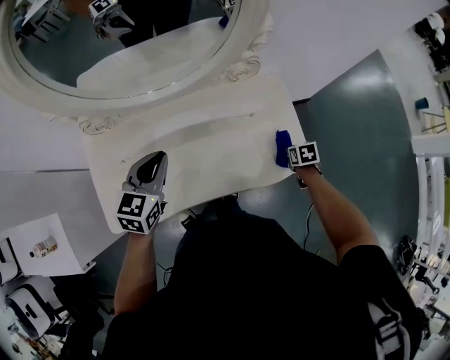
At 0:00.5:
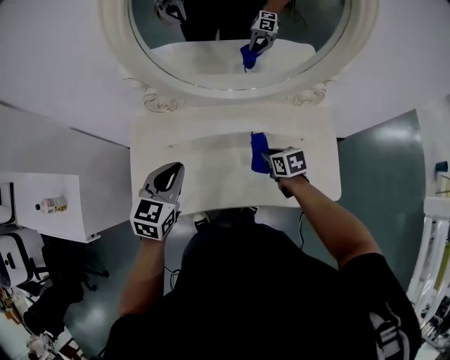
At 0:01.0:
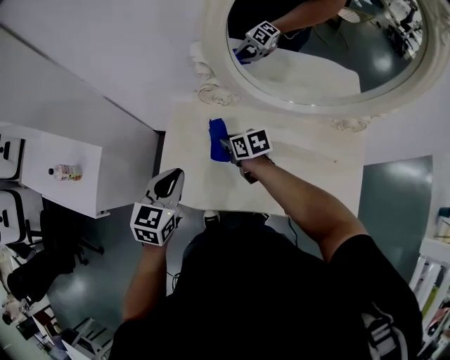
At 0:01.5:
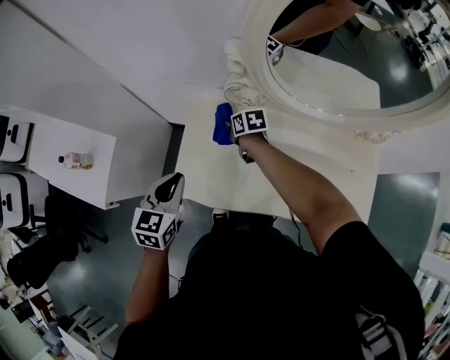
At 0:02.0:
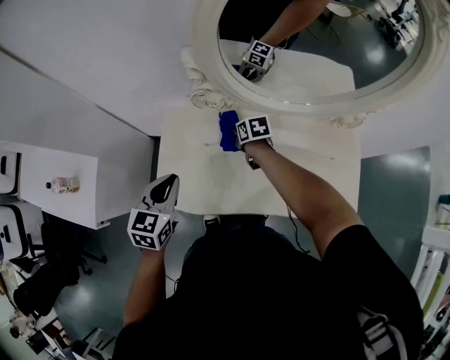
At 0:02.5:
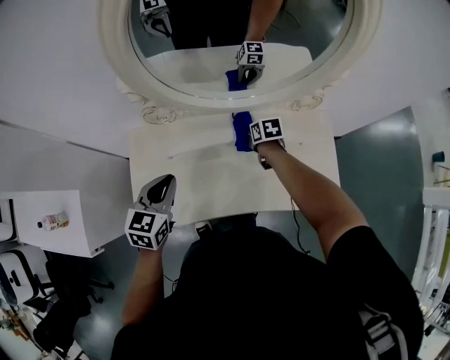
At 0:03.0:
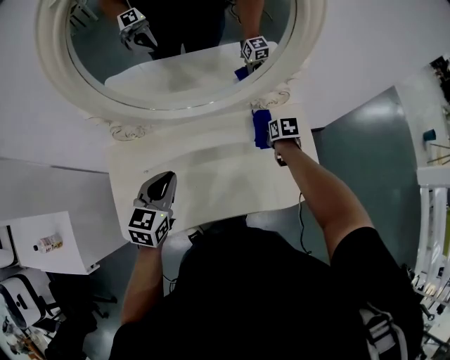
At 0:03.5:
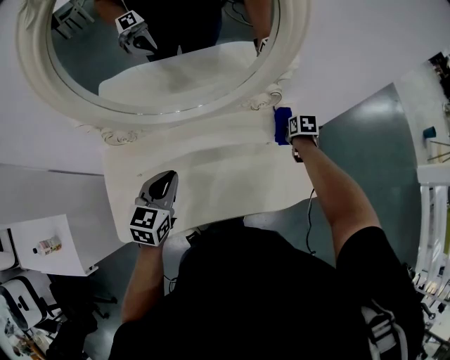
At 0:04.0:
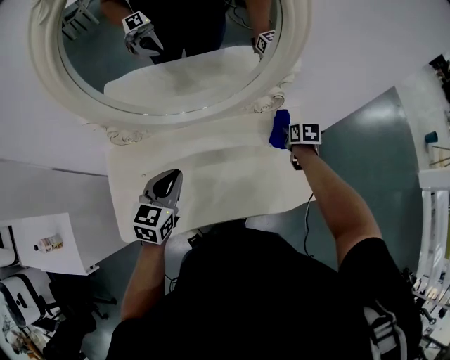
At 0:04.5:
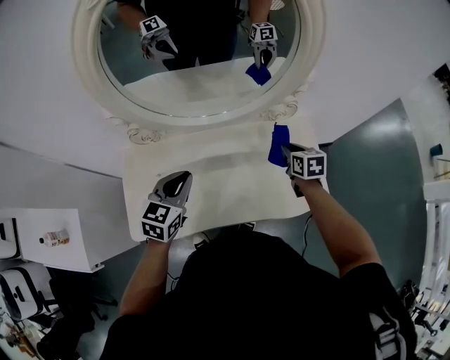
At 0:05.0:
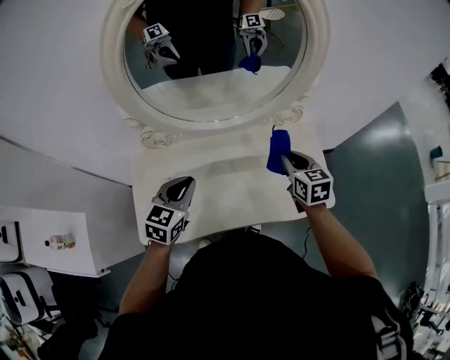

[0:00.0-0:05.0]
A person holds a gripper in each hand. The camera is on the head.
0:02.5 to 0:05.0: The right gripper shifts approximately 25 cm upward, to the right and backward, and swivels about 30 degrees, while the left gripper goes some 10 cm to the right.

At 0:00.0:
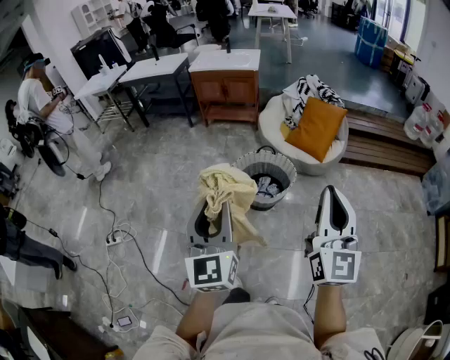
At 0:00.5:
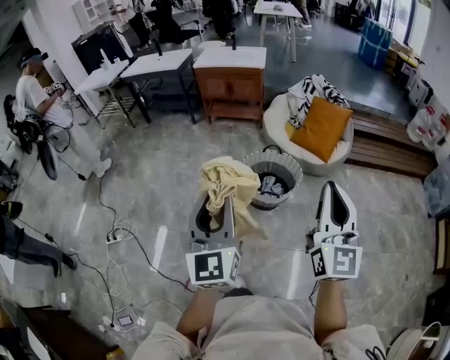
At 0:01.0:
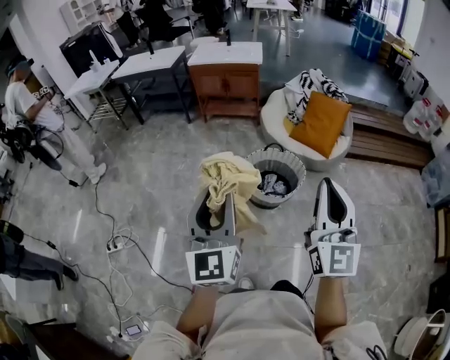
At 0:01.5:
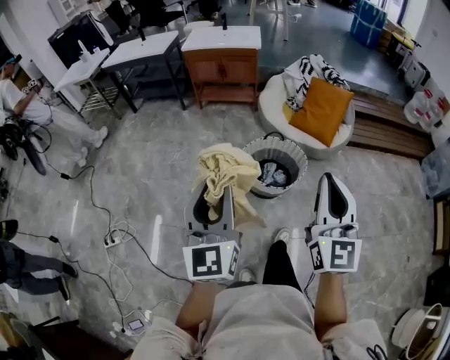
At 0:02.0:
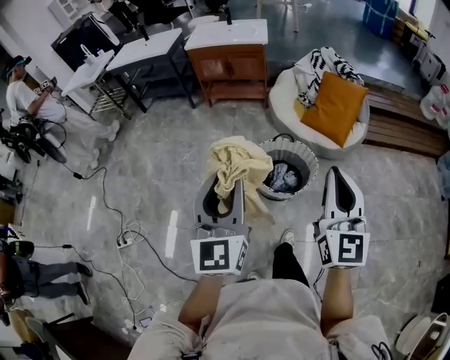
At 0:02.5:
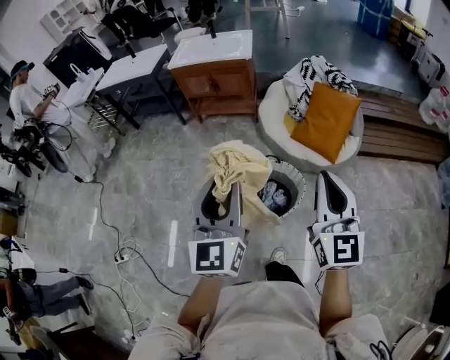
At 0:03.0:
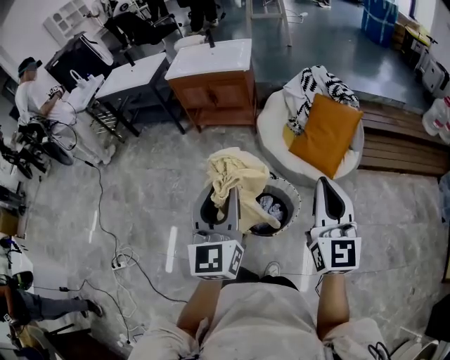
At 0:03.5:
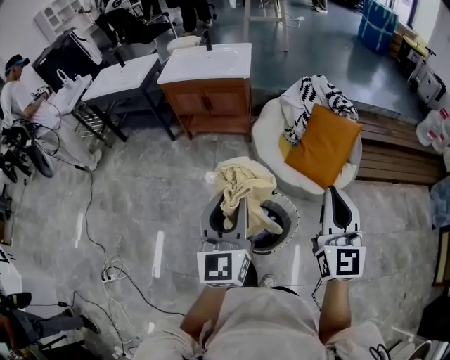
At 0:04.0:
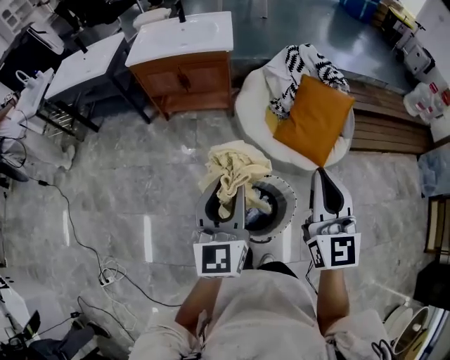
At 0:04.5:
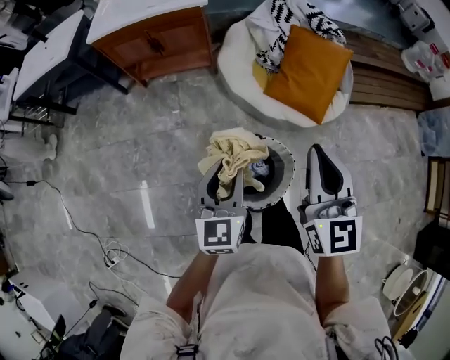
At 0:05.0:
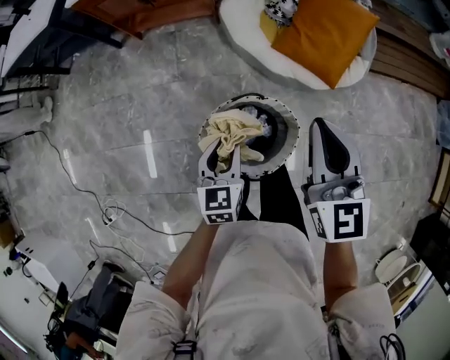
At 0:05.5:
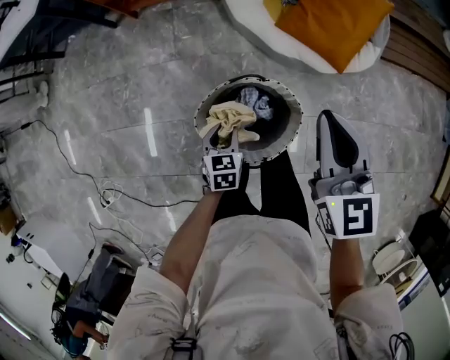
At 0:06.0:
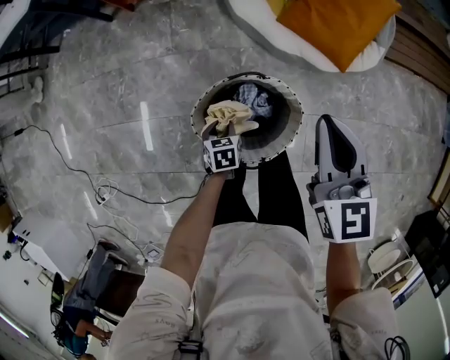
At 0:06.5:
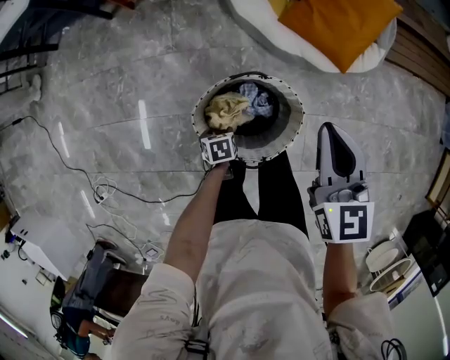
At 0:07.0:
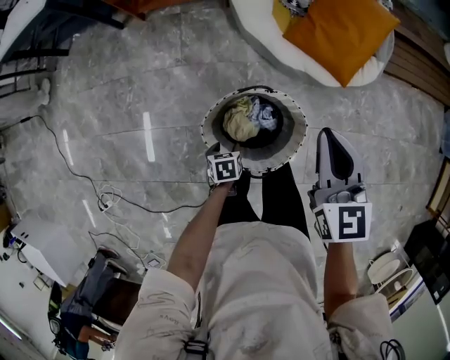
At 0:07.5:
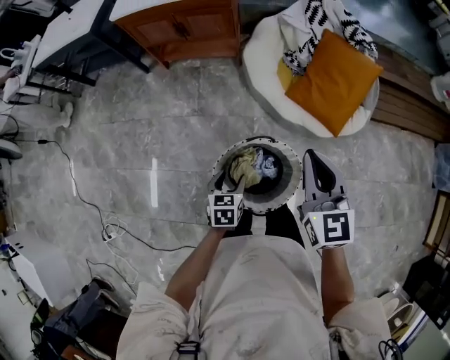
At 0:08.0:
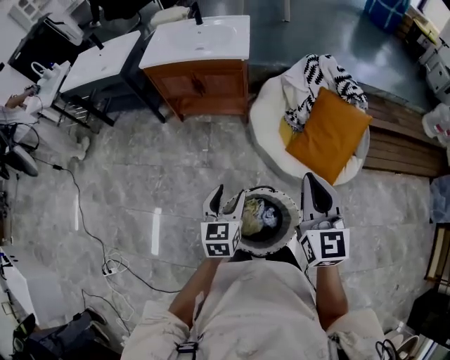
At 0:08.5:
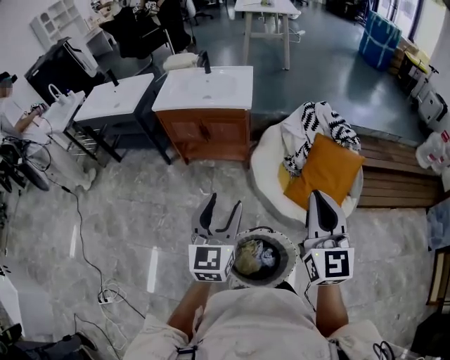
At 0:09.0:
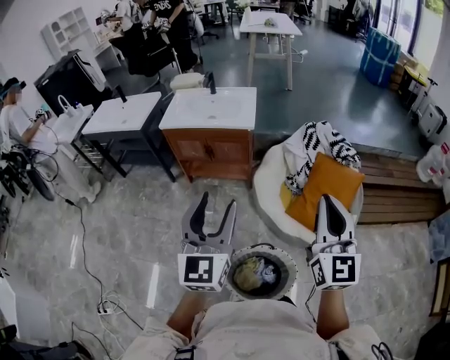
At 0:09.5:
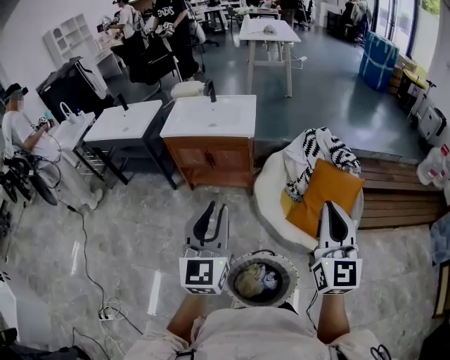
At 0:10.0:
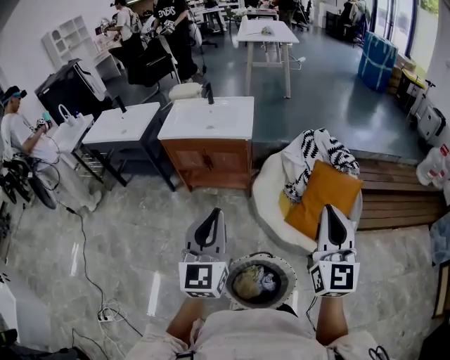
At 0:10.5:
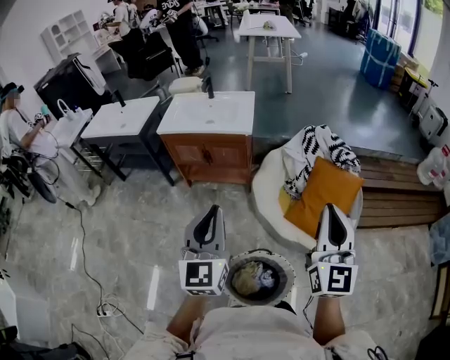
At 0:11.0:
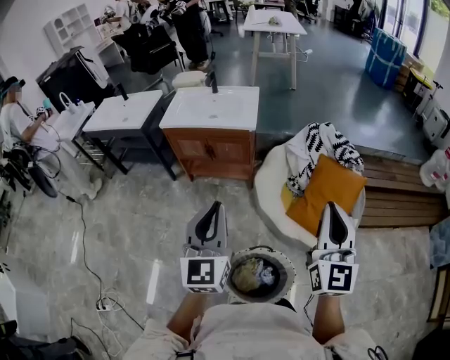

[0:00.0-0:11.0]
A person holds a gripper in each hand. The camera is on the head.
0:00.0 to 0:02.0: Both grippers travel together forward, approximately 20 cm.
0:02.0 to 0:03.5: The grippers both shift forward and to the right by roughly 30 cm.
0:03.5 to 0:05.5: The left gripper travels downward by about 50 cm, and points its fingers about 60 degrees further downward. The right gripper heads downward and forward, covering some 30 cm, and changes its angle by approximately 30 degrees.
0:05.5 to 0:07.5: Both grippers move upward, about 5 cm. The left gripper opens its fingers.
0:07.5 to 0:09.0: The left gripper is displaced upward by roughly 50 cm, and tips its fingers upward by roughly 50 degrees; the right gripper shifts approximately 25 cm upward, and turns by approximately 30 degrees.
0:09.0 to 0:11.0: The left gripper closes its fingers.

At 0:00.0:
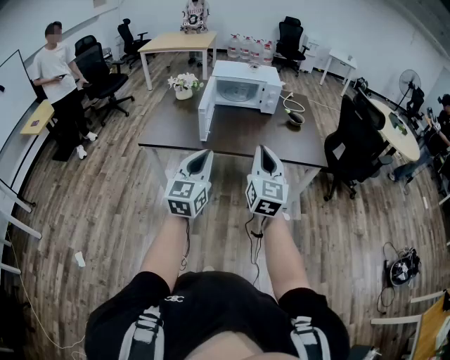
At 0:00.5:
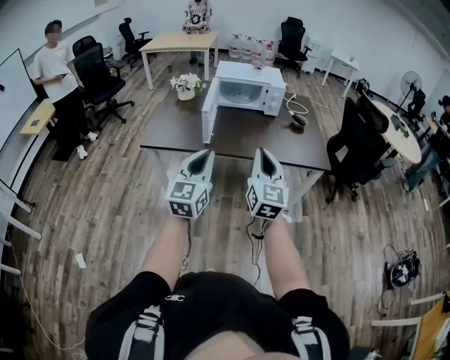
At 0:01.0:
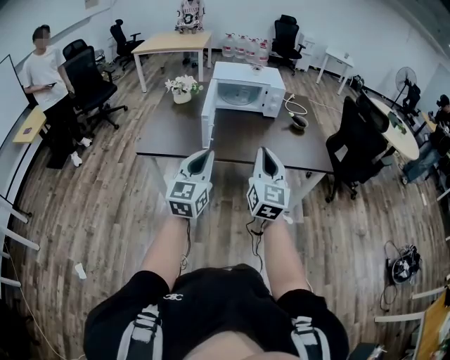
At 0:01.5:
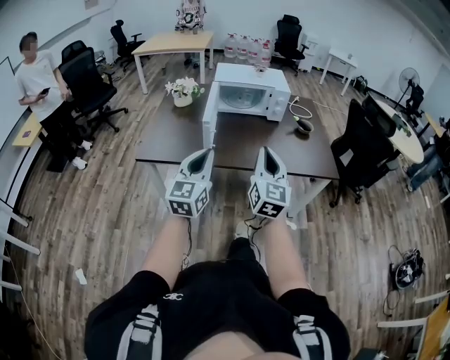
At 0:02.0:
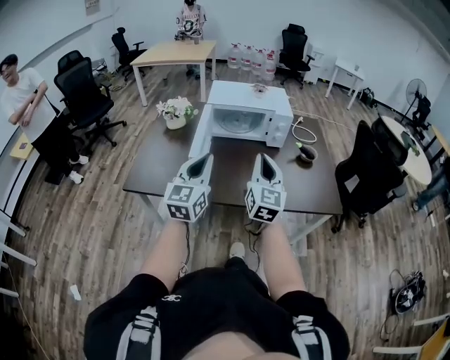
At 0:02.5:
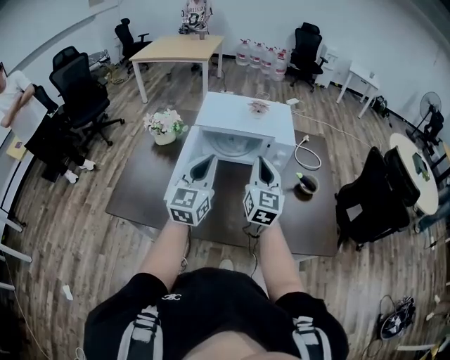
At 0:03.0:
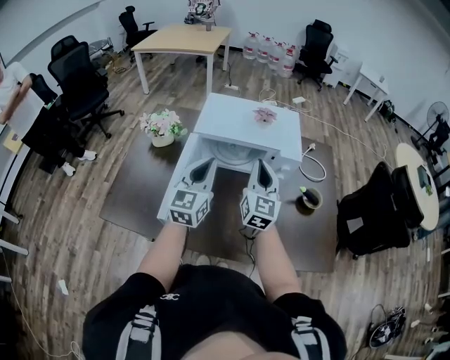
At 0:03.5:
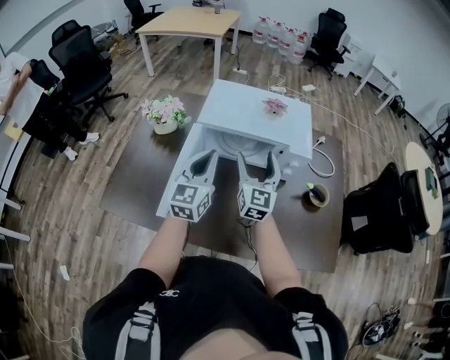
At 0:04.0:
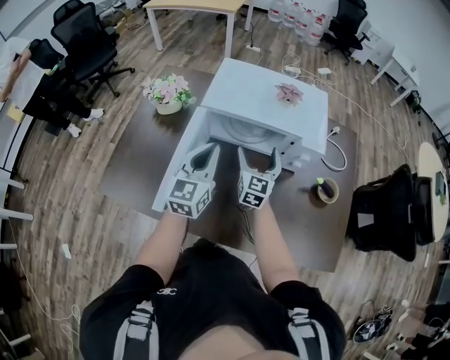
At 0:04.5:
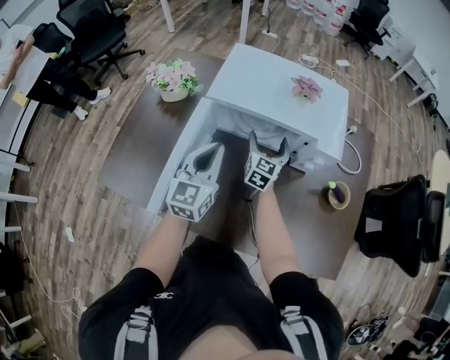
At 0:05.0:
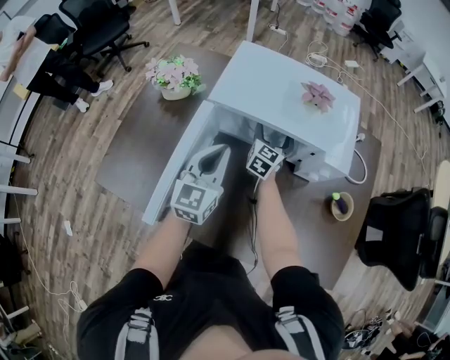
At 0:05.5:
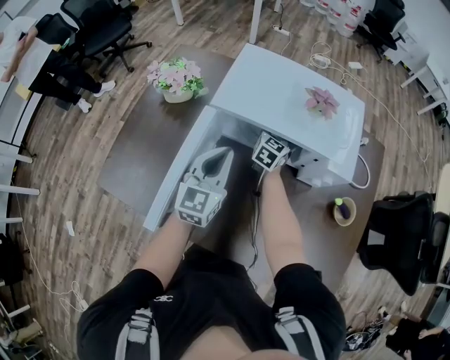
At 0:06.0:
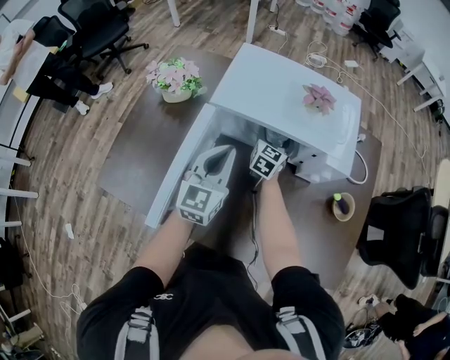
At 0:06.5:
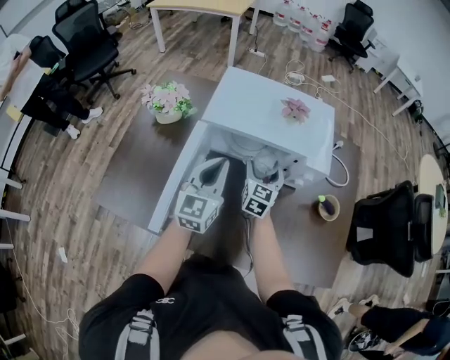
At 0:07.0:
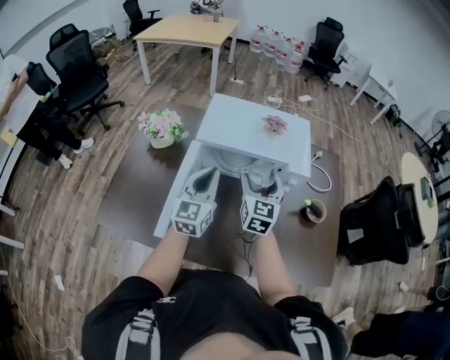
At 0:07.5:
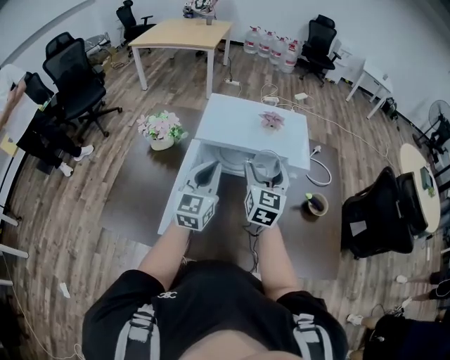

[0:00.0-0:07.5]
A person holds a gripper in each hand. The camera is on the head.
0:00.0 to 0:02.0: The grippers both shift forward by some 35 cm.
0:02.0 to 0:04.0: Both grippers travel together forward, roughly 40 cm. The right gripper opens its fingers.
0:04.0 to 0:05.5: The right gripper heads forward and downward, covering some 20 cm. The left gripper is displaced downward and forward by approximately 10 cm.
0:05.5 to 0:07.5: The right gripper goes some 30 cm upward and backward, while the left gripper moves upward and backward, some 10 cm.

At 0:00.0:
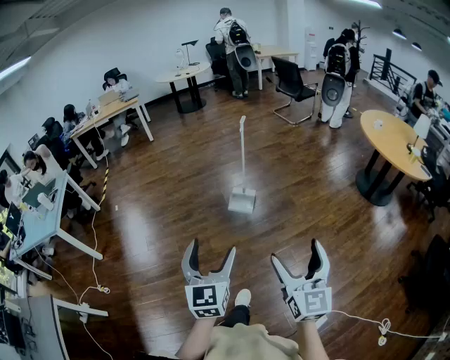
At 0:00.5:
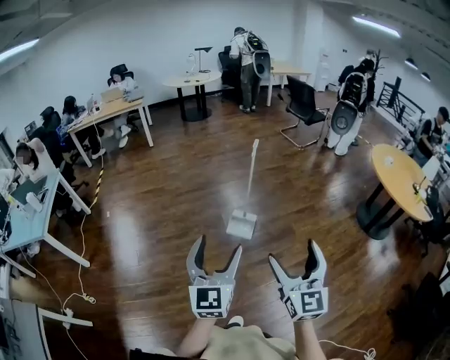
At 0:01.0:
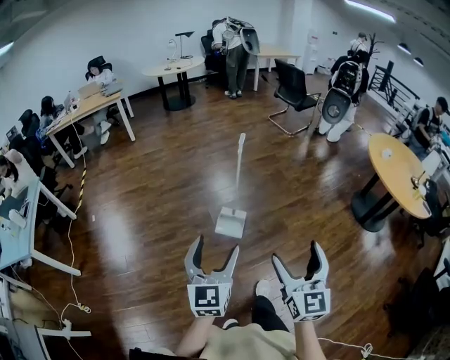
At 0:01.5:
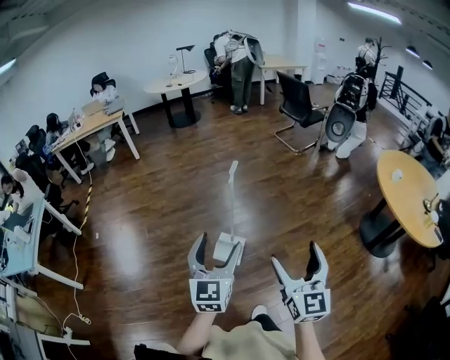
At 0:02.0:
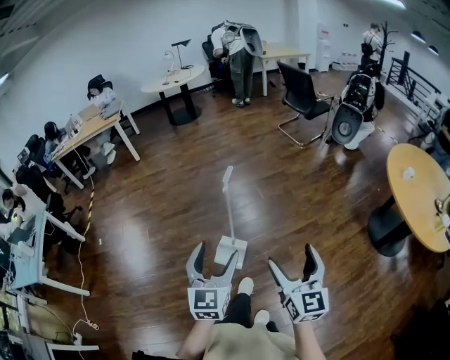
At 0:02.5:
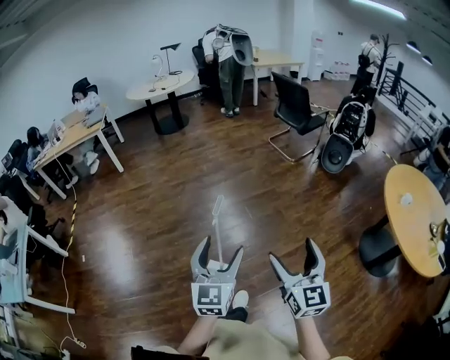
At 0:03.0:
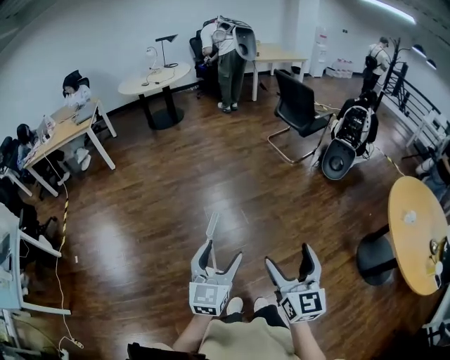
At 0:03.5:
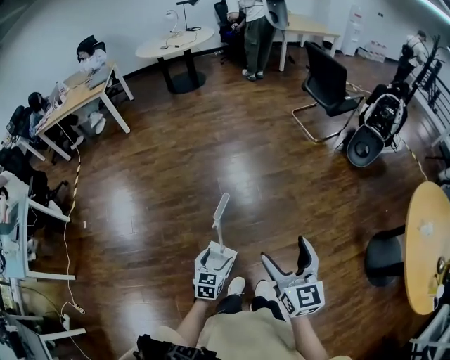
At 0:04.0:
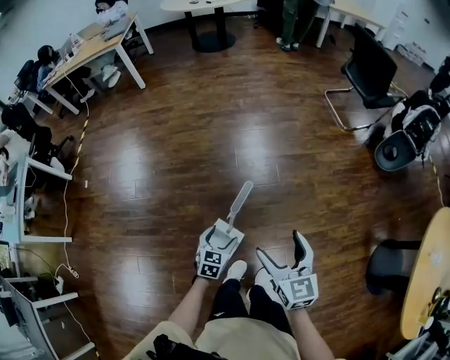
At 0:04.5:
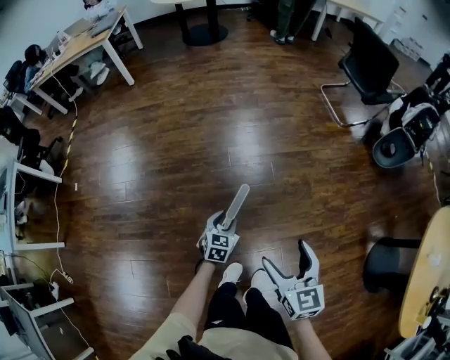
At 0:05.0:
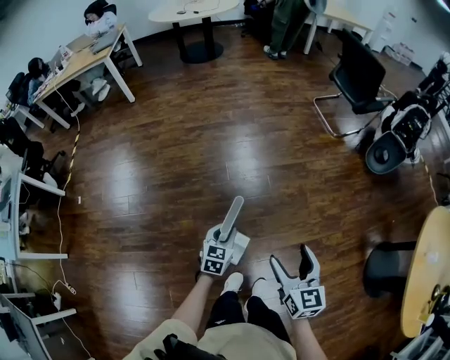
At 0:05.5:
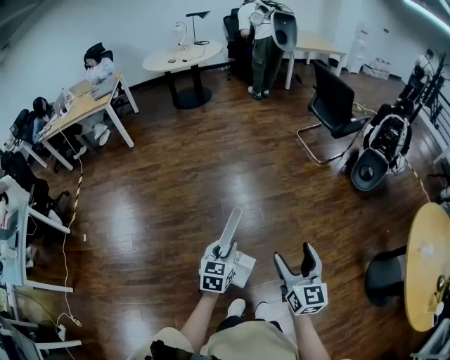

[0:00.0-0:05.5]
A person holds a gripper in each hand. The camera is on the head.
0:00.0 to 0:02.0: The pair of grippers is taken forward, some 50 cm.
0:02.0 to 0:03.5: The right gripper shifts roughly 30 cm forward. The left gripper goes roughly 40 cm downward and forward, and angles its fingers downward, by approximately 30 degrees.
0:03.5 to 0:05.5: The right gripper heads forward, covering some 10 cm, and moves about 15 cm downward and comes back; the left gripper is displaced forward and upward by roughly 20 cm, and closes.
